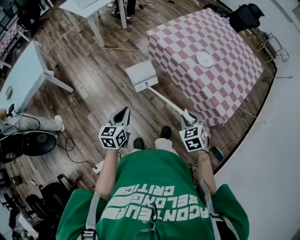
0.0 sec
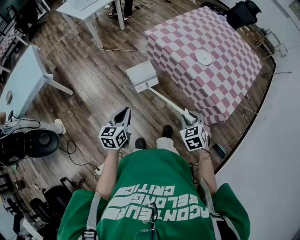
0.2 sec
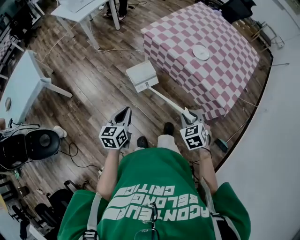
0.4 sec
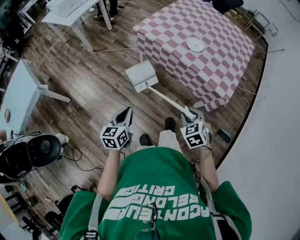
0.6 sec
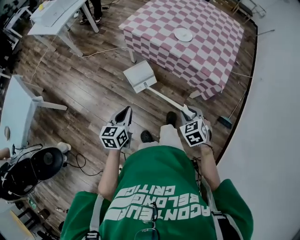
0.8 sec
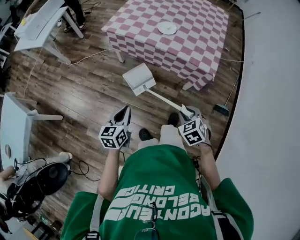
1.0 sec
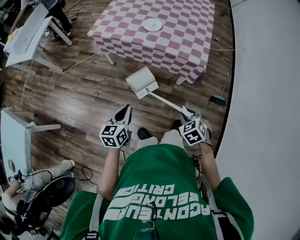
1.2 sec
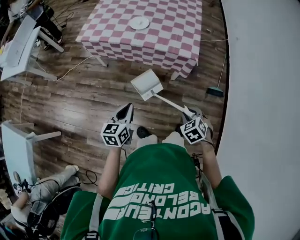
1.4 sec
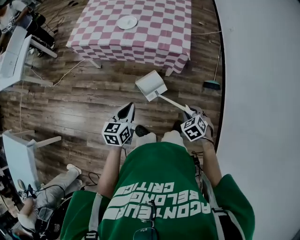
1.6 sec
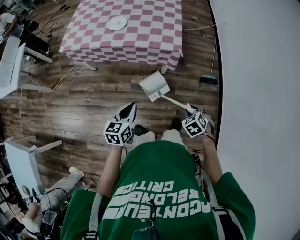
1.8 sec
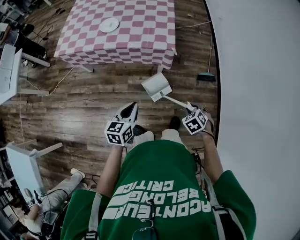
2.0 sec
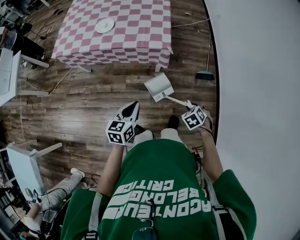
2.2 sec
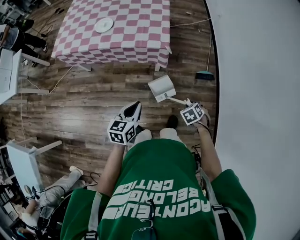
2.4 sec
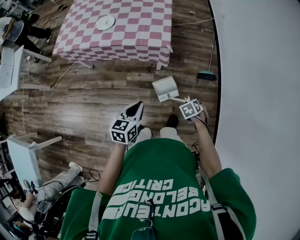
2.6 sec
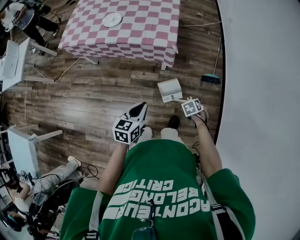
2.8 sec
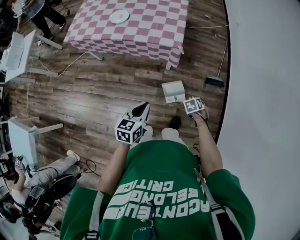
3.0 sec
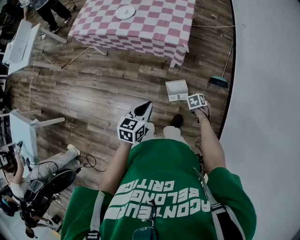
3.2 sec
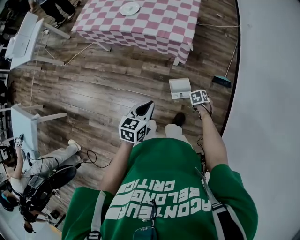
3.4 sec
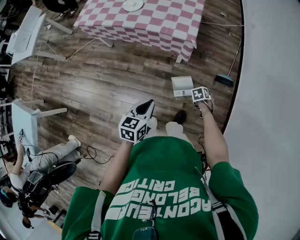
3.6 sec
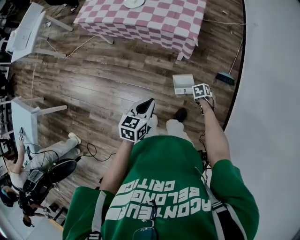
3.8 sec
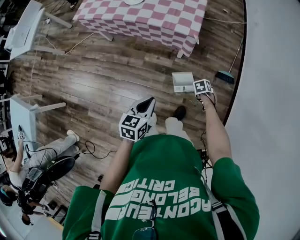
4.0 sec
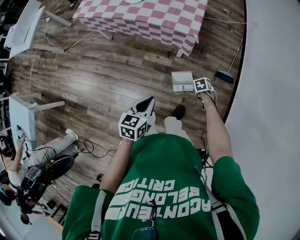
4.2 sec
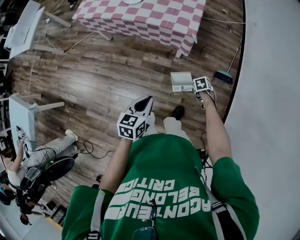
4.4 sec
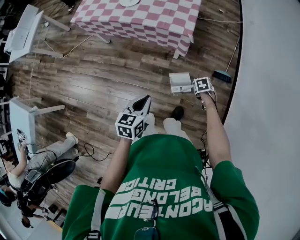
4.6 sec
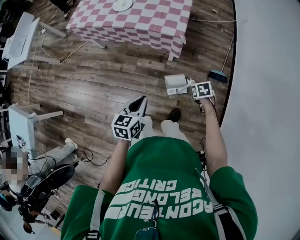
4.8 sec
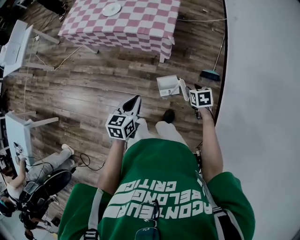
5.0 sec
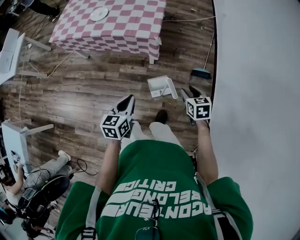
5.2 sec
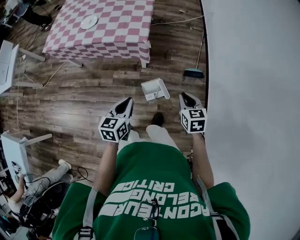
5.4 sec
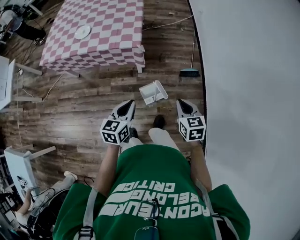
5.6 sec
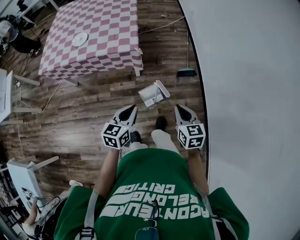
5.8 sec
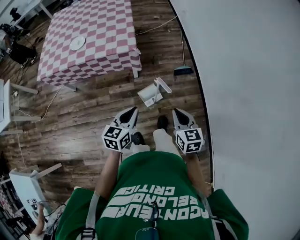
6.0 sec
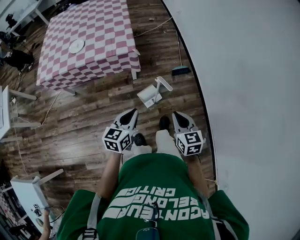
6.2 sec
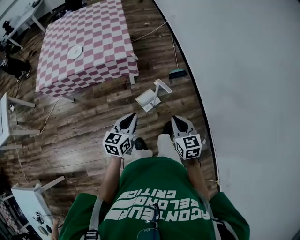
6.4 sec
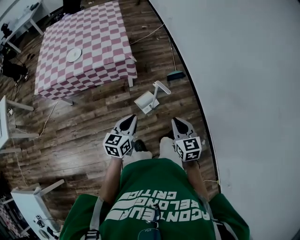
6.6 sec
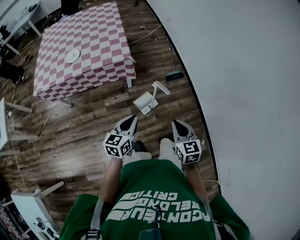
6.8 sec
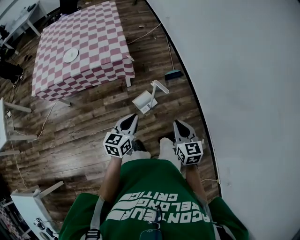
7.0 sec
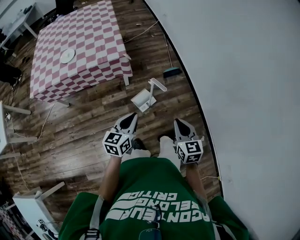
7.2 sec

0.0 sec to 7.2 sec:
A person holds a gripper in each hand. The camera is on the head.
0.0 sec to 1.4 sec: The left gripper shifts by about 15 cm, and changes its angle by about 40 degrees. The right gripper changes place by roughly 25 cm, and turns by approximately 30 degrees.
1.4 sec to 2.8 sec: The left gripper ends up some 25 cm from where it was. Meanwhile the right gripper ends up about 30 cm from where it was, and changes its angle by roughly 30 degrees.
2.8 sec to 4.4 sec: The right gripper goes approximately 5 cm downward.
4.4 sec to 5.8 sec: The right gripper travels upward by about 30 cm, tips its fingers upward by about 50 degrees, and closes its fingers, while the left gripper changes place by some 15 cm, and changes its angle by about 20 degrees.
5.8 sec to 7.2 sec: The right gripper shifts some 15 cm backward, while the left gripper shifts some 5 cm backward.

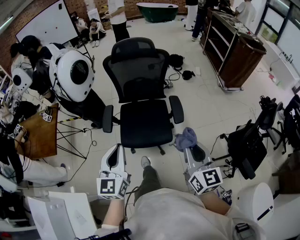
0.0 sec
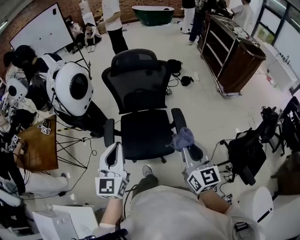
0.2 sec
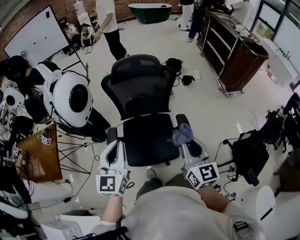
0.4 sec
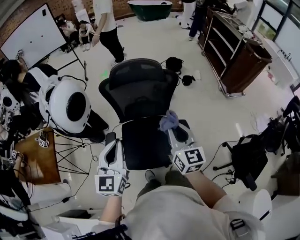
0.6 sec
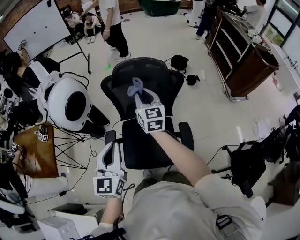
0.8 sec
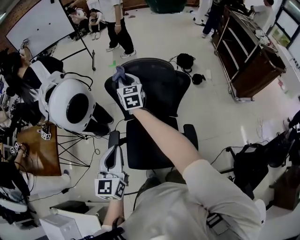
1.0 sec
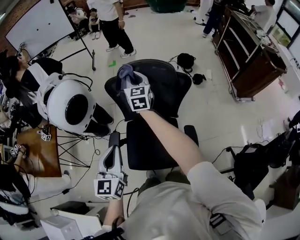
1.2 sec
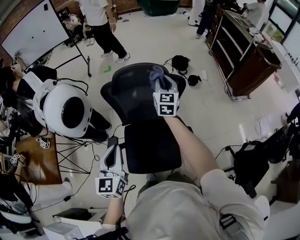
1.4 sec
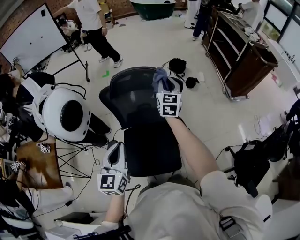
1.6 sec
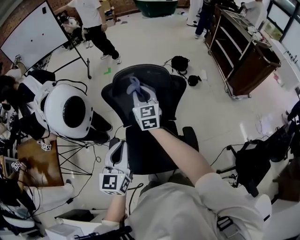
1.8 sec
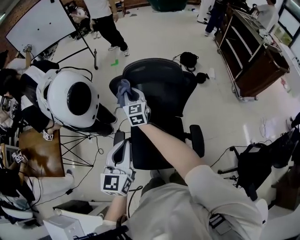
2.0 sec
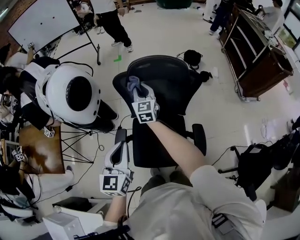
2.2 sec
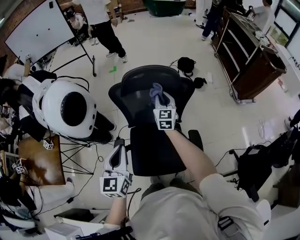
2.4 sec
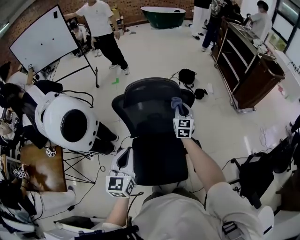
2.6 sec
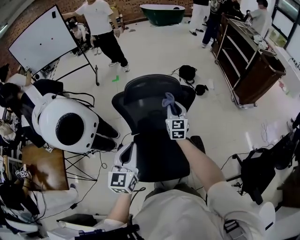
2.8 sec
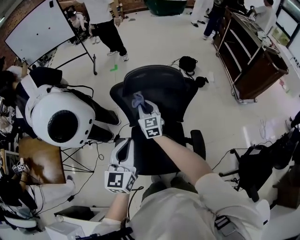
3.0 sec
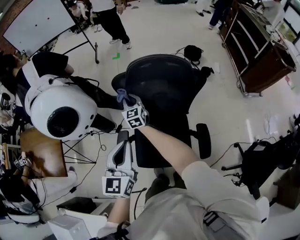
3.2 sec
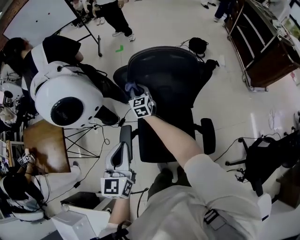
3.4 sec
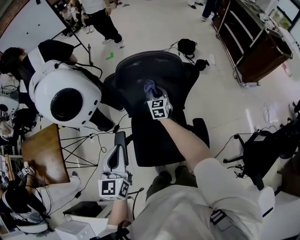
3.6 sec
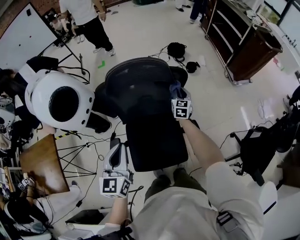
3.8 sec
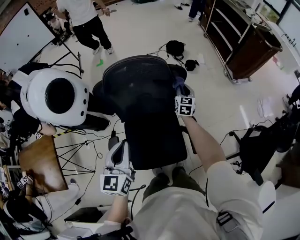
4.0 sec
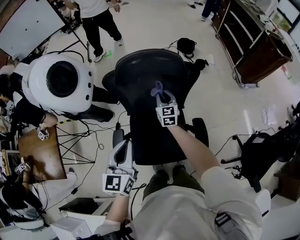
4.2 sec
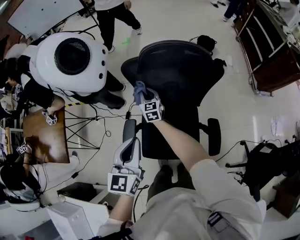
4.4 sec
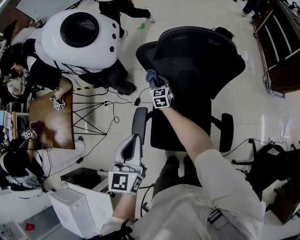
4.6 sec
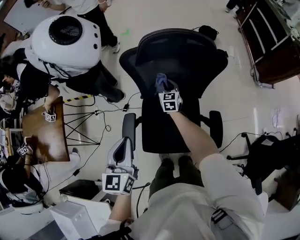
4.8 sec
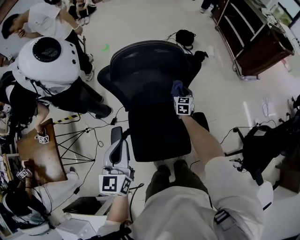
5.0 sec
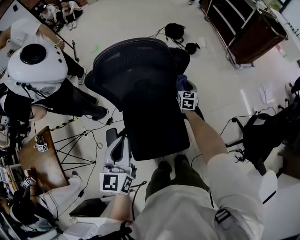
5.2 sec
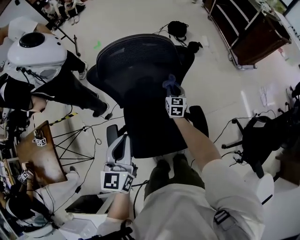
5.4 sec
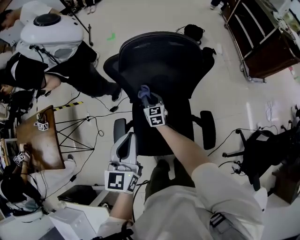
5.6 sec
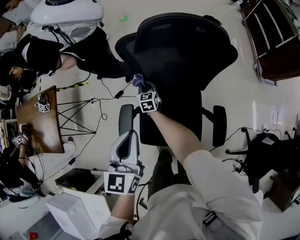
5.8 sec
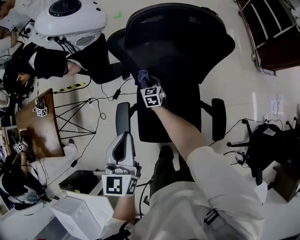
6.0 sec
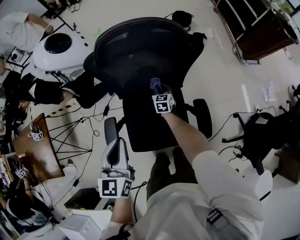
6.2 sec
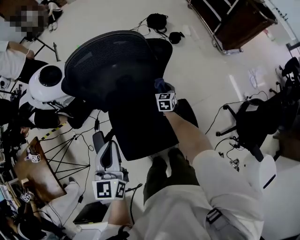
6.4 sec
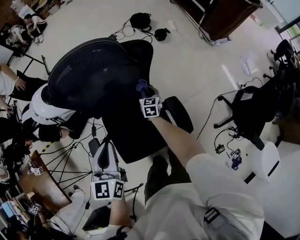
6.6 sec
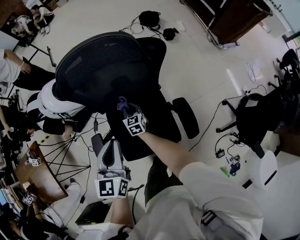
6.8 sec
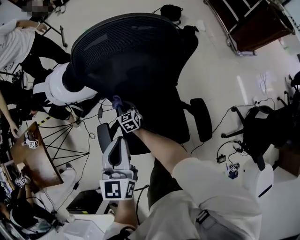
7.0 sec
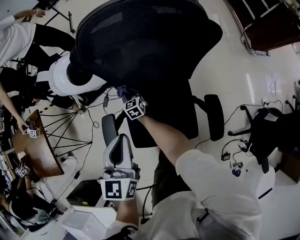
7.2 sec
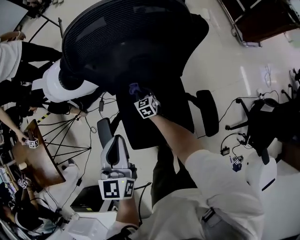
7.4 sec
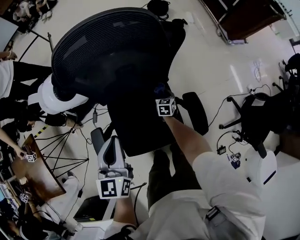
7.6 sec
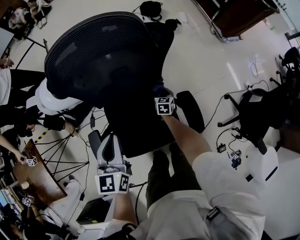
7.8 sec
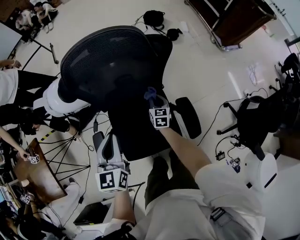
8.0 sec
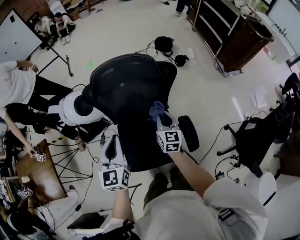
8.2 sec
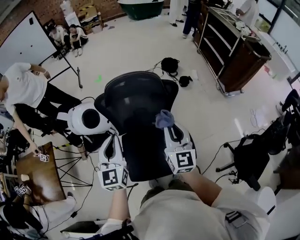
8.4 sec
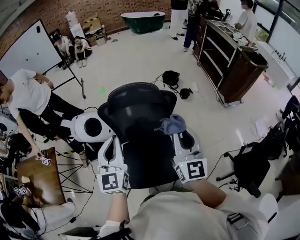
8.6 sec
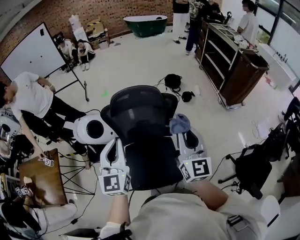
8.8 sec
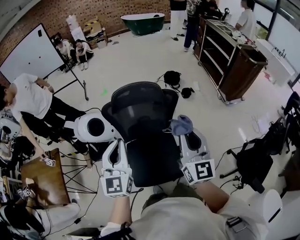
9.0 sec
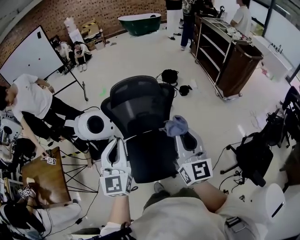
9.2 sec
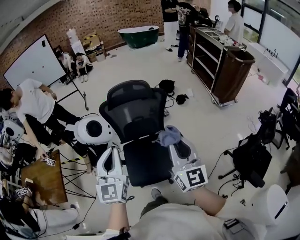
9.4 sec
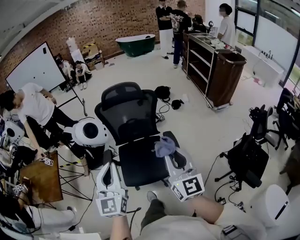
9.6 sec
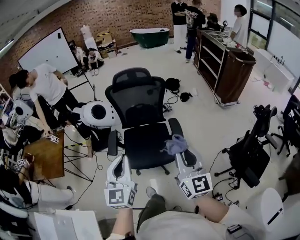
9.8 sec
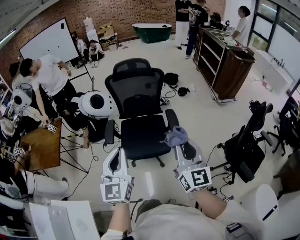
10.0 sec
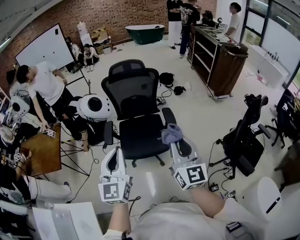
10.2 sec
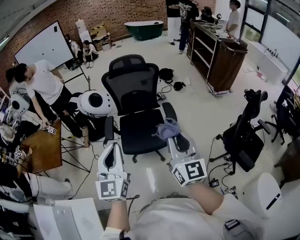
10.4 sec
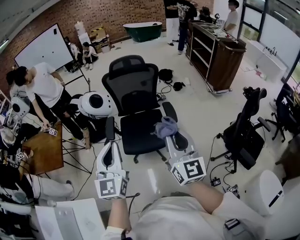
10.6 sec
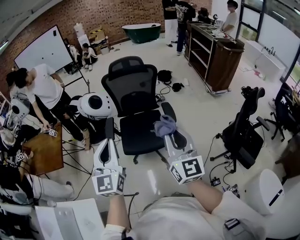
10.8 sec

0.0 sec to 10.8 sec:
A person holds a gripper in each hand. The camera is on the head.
0.0 sec to 1.6 sec: The right gripper shifts some 70 cm forward, and turns by approximately 20 degrees. The left gripper moves forward, roughly 40 cm.
1.6 sec to 3.0 sec: The right gripper moves left and right over some 25 cm, changing direction 2 times.
3.0 sec to 4.6 sec: The left gripper heads forward and downward, covering approximately 10 cm. Meanwhile the right gripper moves left and right over approximately 40 cm, changing direction 2 times.
4.6 sec to 6.2 sec: The right gripper moves left and right over some 40 cm, changing direction 2 times, and swivels approximately 20 degrees, while the left gripper travels forward by approximately 10 cm.
6.2 sec to 7.8 sec: The left gripper shifts roughly 10 cm downward and to the right. Meanwhile the right gripper moves left and right over approximately 35 cm, changing direction 2 times.
7.8 sec to 9.2 sec: The right gripper travels upward and backward by approximately 80 cm, and points its fingers approximately 70 degrees further upward; the left gripper heads backward and upward, covering some 50 cm, and turns by approximately 30 degrees.
9.2 sec to 10.8 sec: Both grippers are carried backward, some 40 cm.

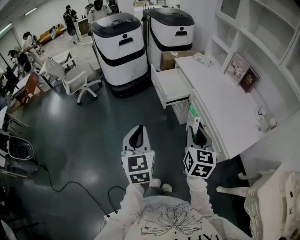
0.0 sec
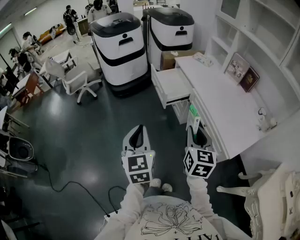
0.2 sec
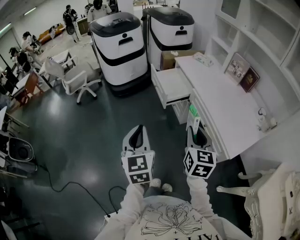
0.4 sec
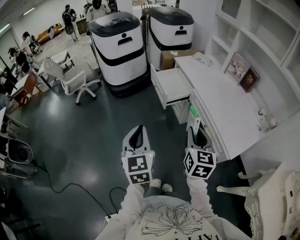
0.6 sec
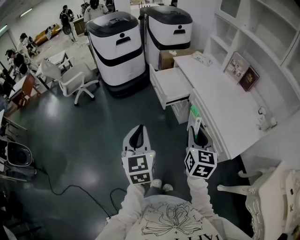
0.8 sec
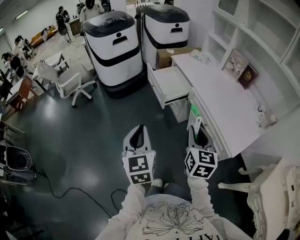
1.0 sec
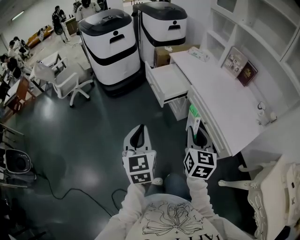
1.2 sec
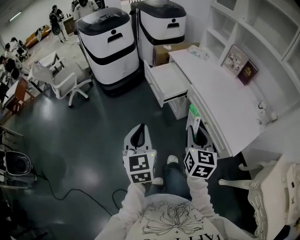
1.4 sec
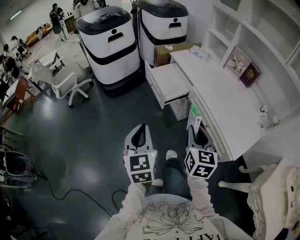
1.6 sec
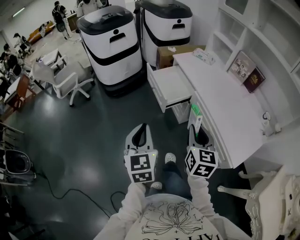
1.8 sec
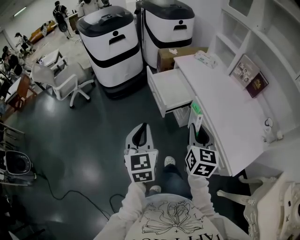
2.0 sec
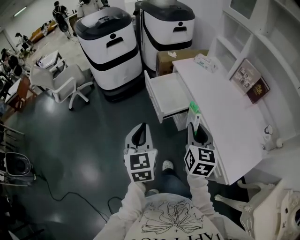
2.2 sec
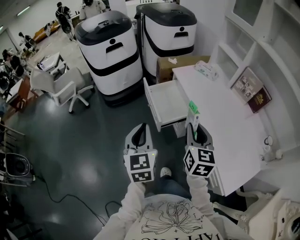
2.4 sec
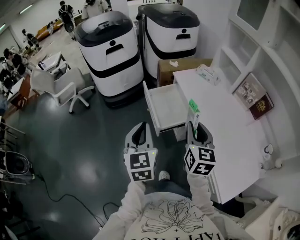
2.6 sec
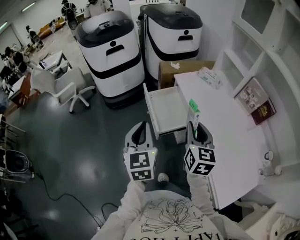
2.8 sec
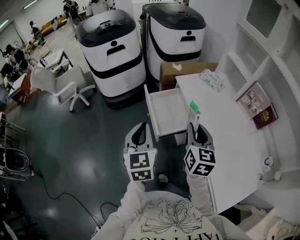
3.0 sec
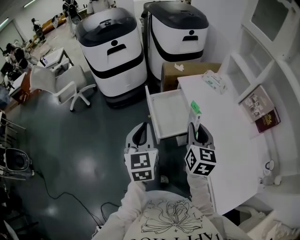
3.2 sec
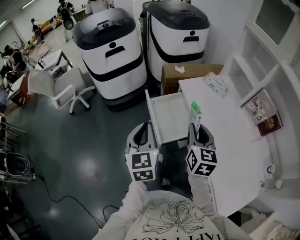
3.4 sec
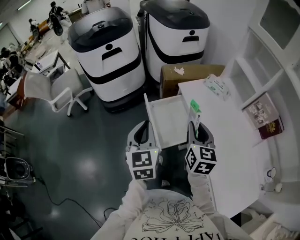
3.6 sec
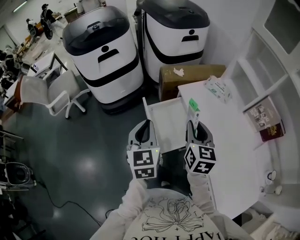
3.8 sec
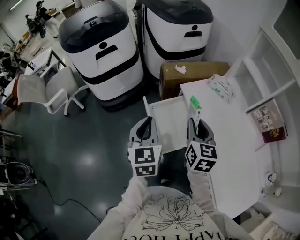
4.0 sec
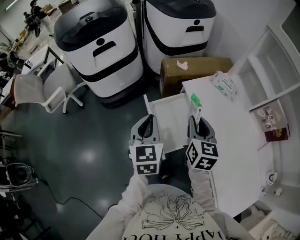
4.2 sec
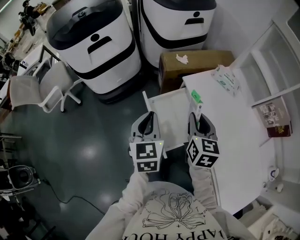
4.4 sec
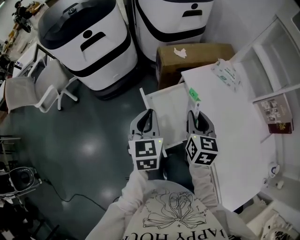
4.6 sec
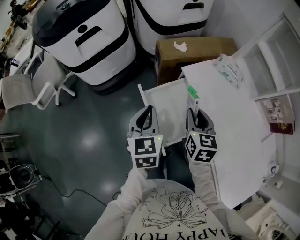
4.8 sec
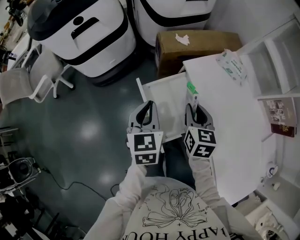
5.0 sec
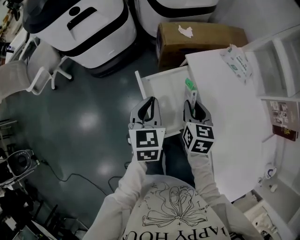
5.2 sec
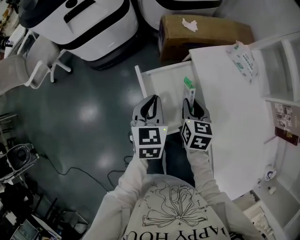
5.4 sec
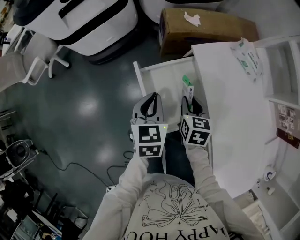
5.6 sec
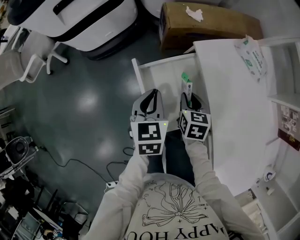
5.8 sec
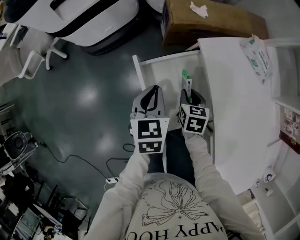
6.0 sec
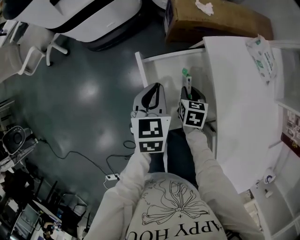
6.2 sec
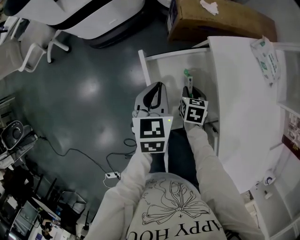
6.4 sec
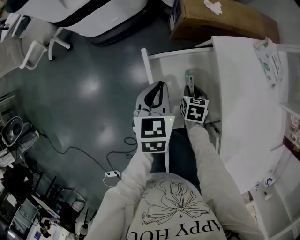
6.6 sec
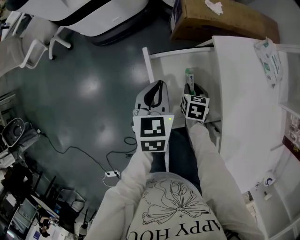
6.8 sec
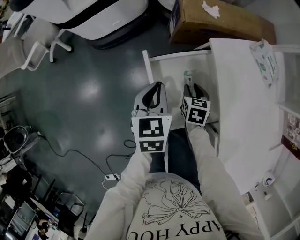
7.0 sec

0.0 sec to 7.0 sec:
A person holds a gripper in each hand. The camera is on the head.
0.0 sec to 1.4 sec: The right gripper changes place by roughly 5 cm, while the left gripper travels forward by approximately 5 cm.
1.4 sec to 2.8 sec: The two grippers go approximately 30 cm forward.
2.8 sec to 4.2 sec: Both grippers travel together forward, approximately 25 cm.
4.2 sec to 5.6 sec: Both grippers travel together downward, approximately 20 cm. The right gripper swivels some 20 degrees.
5.6 sec to 7.0 sec: The right gripper heads downward, covering about 10 cm.
